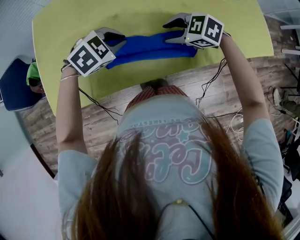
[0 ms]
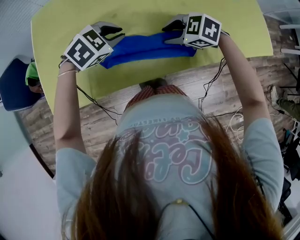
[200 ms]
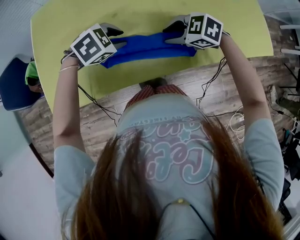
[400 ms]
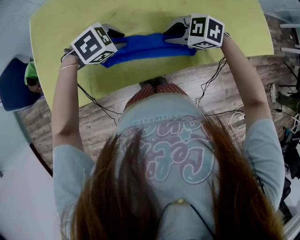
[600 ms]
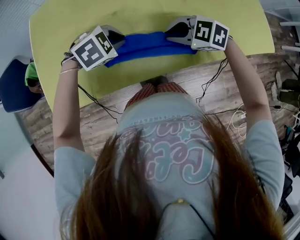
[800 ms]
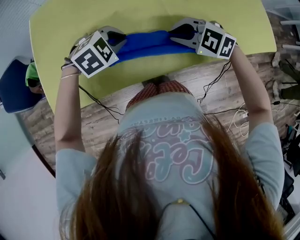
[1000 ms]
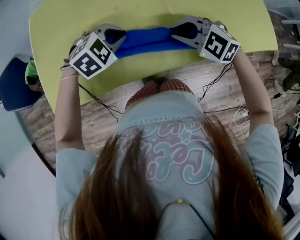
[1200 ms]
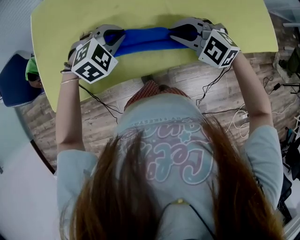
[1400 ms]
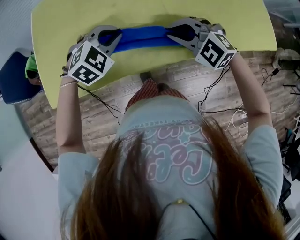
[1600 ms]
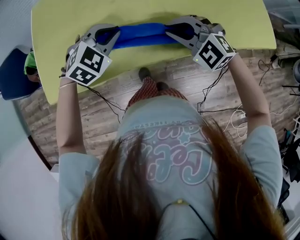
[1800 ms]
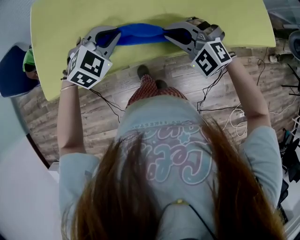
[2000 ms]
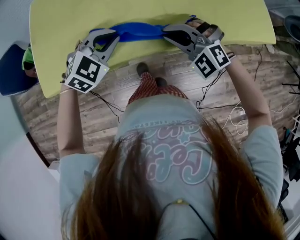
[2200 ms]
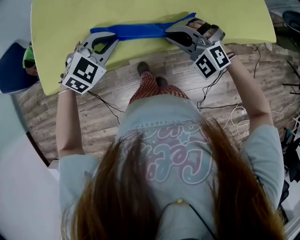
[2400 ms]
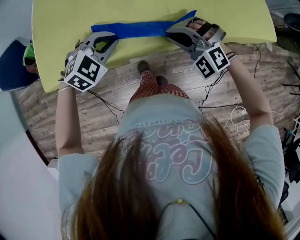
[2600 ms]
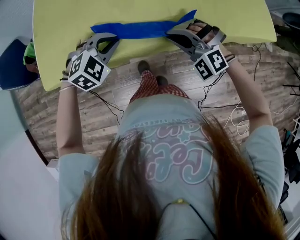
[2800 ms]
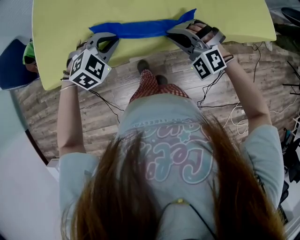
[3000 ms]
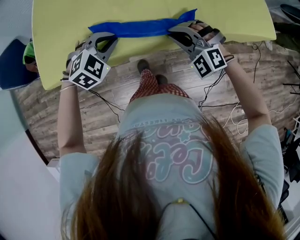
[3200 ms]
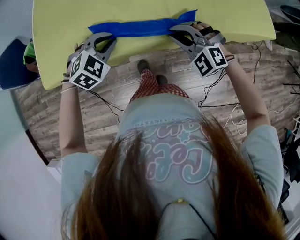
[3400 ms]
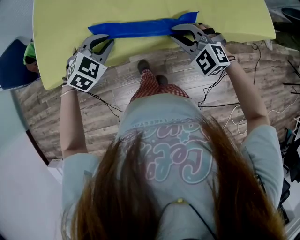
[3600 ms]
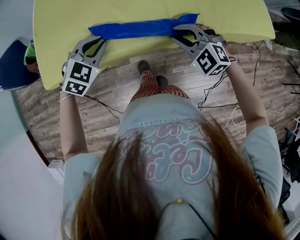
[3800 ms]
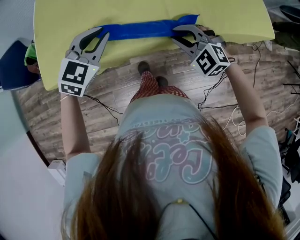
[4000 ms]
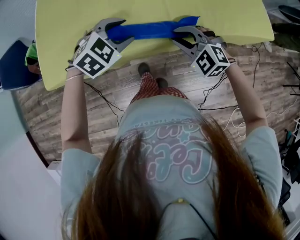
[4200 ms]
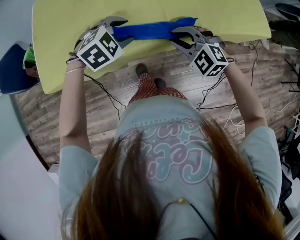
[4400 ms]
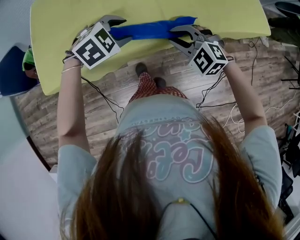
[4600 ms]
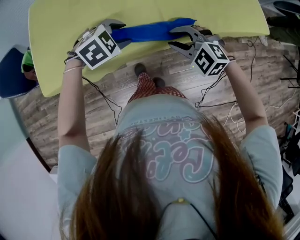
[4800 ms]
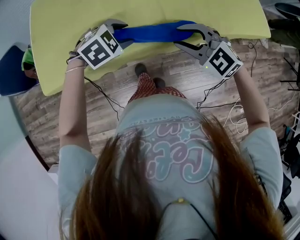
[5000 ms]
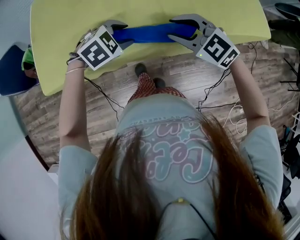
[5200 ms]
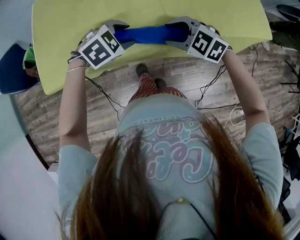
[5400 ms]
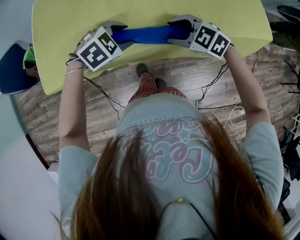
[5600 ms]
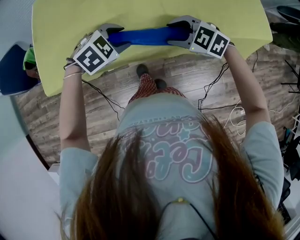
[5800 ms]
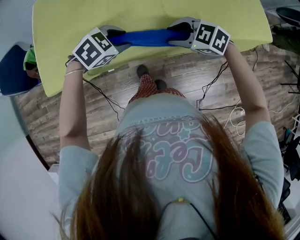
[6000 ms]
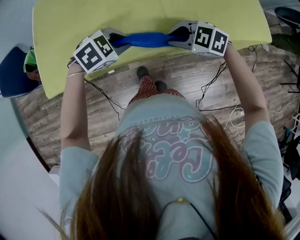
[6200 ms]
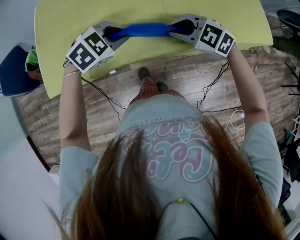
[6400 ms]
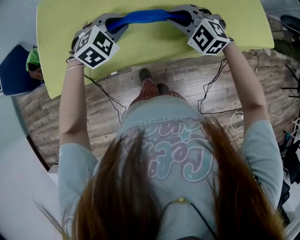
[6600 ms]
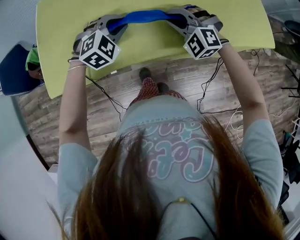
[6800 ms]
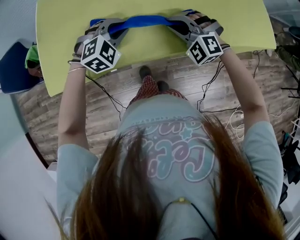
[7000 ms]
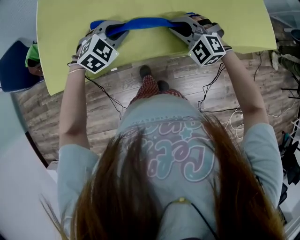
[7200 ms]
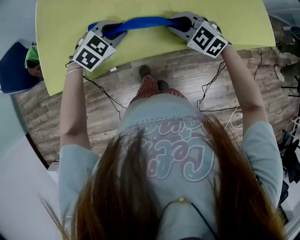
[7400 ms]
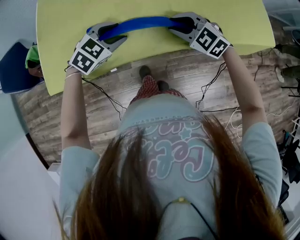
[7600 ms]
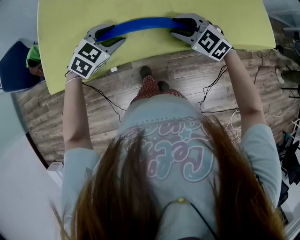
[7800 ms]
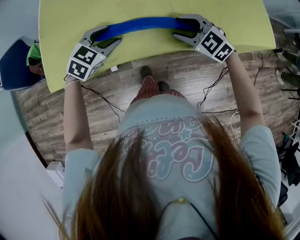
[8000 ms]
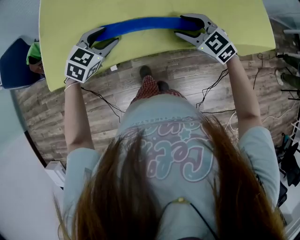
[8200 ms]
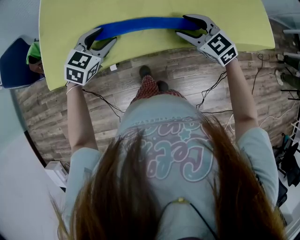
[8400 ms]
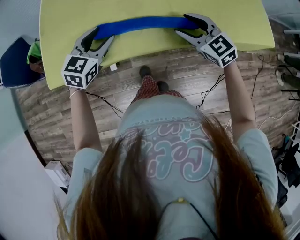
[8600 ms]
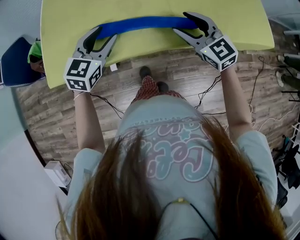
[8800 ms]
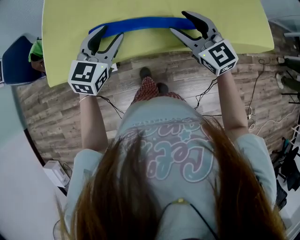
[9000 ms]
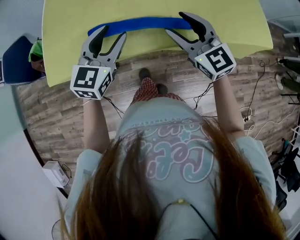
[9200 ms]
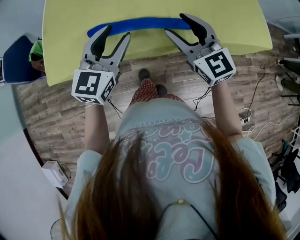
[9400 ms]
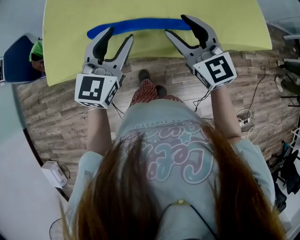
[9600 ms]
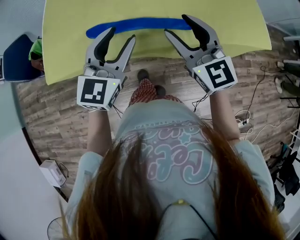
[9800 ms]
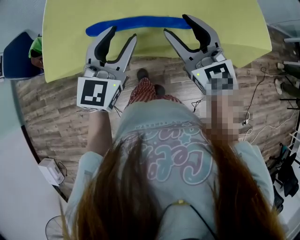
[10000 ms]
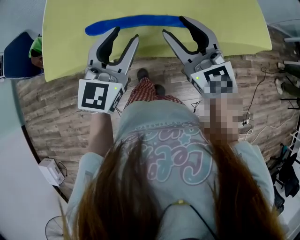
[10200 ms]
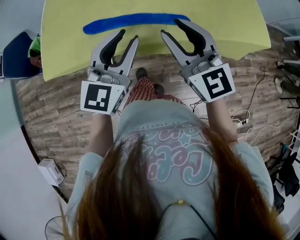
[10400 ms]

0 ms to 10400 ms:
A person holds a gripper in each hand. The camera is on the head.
0 ms to 1400 ms: The right gripper changes place by approximately 5 cm, changes its angle by about 30 degrees, and closes up.
1400 ms to 3000 ms: The grippers both shift backward by roughly 10 cm. The right gripper changes its angle by approximately 30 degrees.
3000 ms to 4400 ms: The left gripper is displaced to the right by about 5 cm, and opens, while the right gripper swivels some 30 degrees.
4400 ms to 6000 ms: The right gripper turns by some 30 degrees.
6000 ms to 7400 ms: The right gripper changes its angle by approximately 20 degrees, while the left gripper changes place by about 5 cm, and closes its fingers.
7400 ms to 9000 ms: The grippers both shift upward by about 10 cm. The right gripper changes its angle by some 40 degrees, and opens up; the left gripper rotates some 40 degrees, and opens up.
9000 ms to 10400 ms: The left gripper heads backward, to the right and upward, covering some 15 cm. Meanwhile the right gripper shifts approximately 10 cm upward and backward.

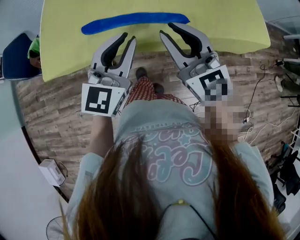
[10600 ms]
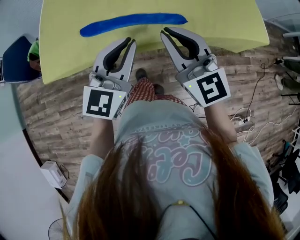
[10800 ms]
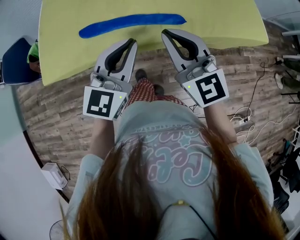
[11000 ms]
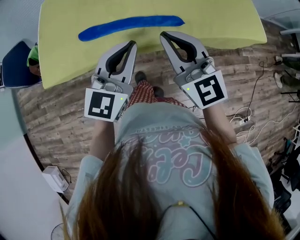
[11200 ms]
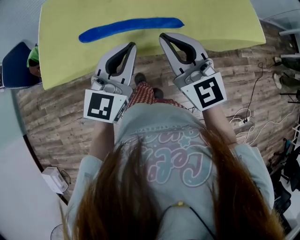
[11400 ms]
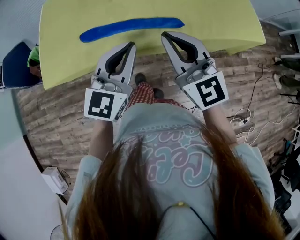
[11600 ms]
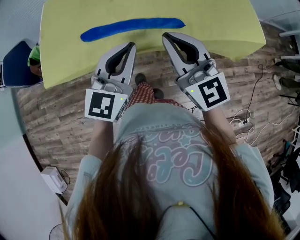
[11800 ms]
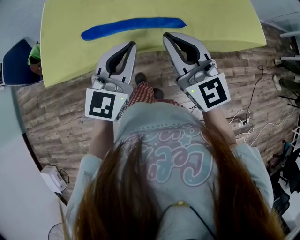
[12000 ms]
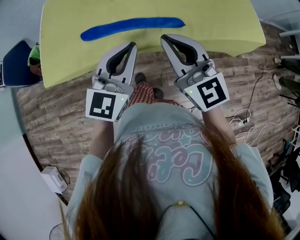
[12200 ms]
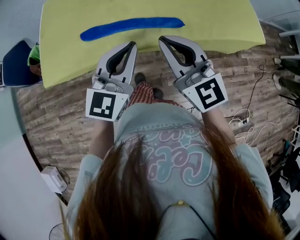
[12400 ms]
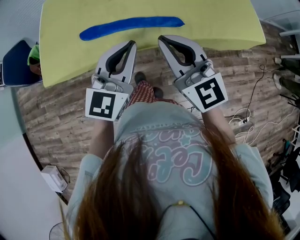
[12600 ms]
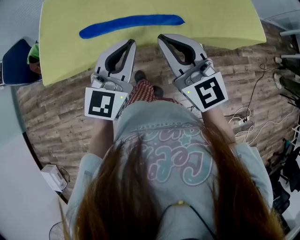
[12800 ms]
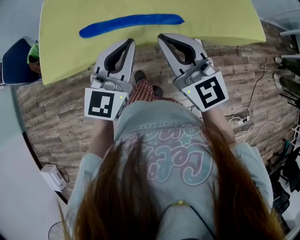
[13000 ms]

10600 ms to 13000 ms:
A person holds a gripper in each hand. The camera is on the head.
10600 ms to 13000 ms: The grippers move only a little.

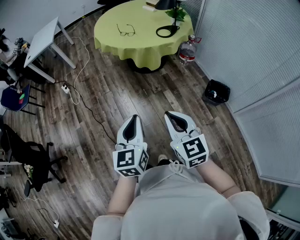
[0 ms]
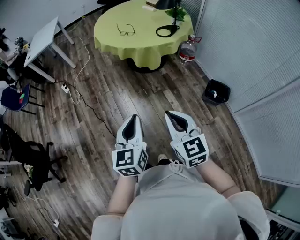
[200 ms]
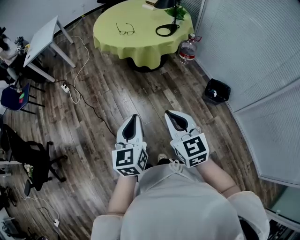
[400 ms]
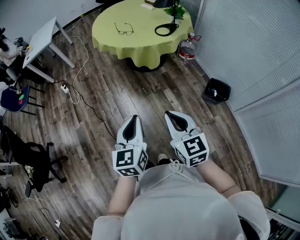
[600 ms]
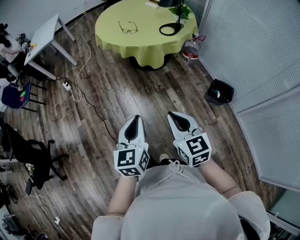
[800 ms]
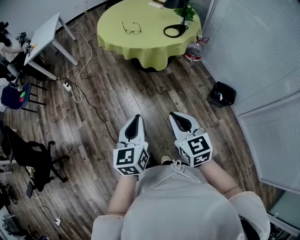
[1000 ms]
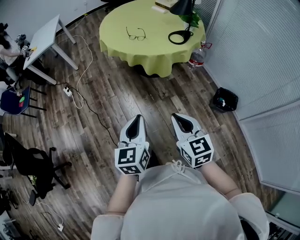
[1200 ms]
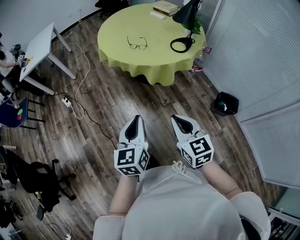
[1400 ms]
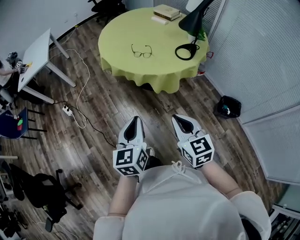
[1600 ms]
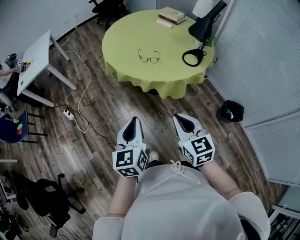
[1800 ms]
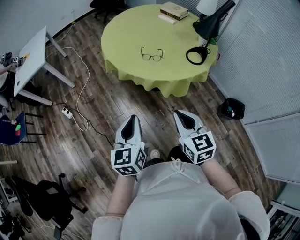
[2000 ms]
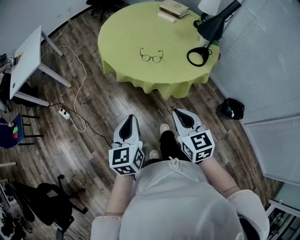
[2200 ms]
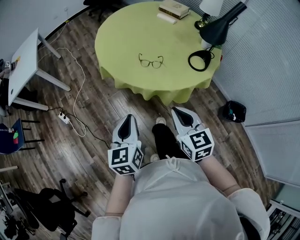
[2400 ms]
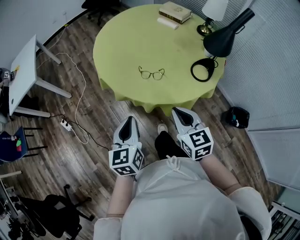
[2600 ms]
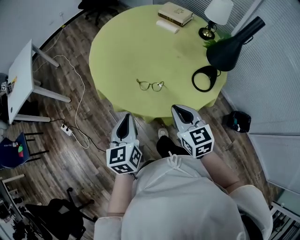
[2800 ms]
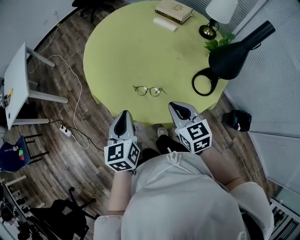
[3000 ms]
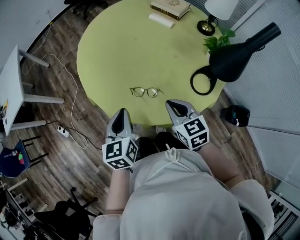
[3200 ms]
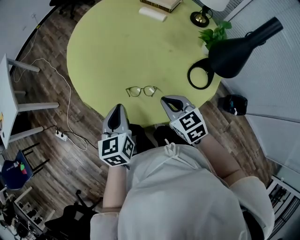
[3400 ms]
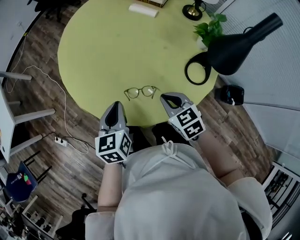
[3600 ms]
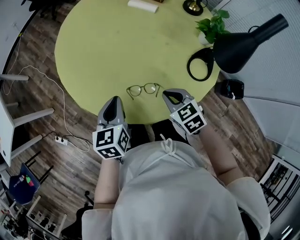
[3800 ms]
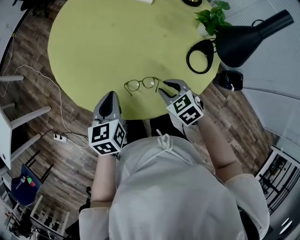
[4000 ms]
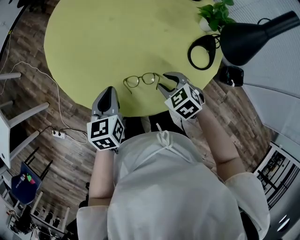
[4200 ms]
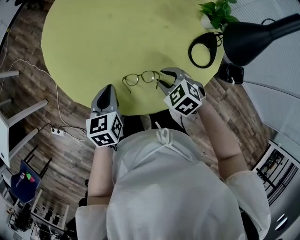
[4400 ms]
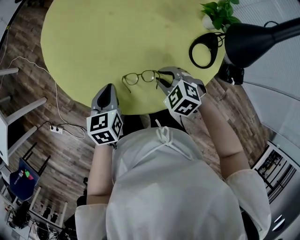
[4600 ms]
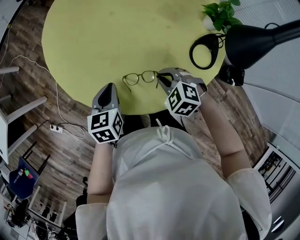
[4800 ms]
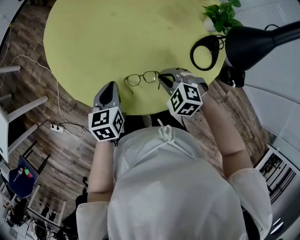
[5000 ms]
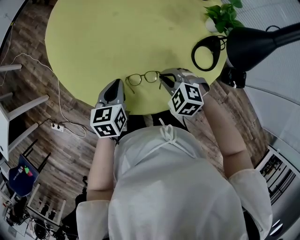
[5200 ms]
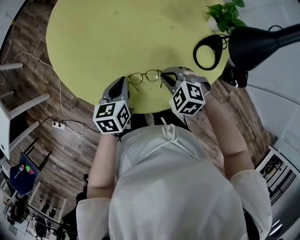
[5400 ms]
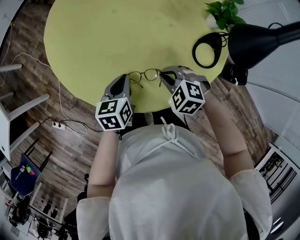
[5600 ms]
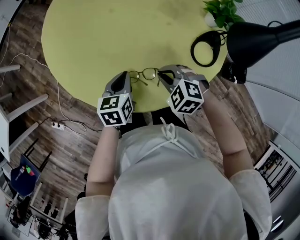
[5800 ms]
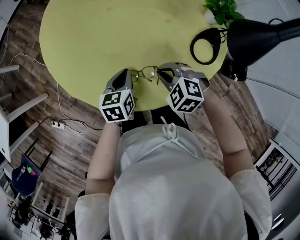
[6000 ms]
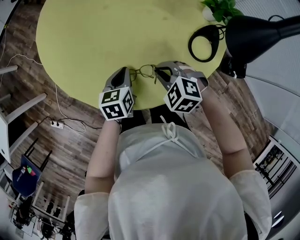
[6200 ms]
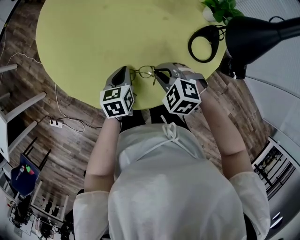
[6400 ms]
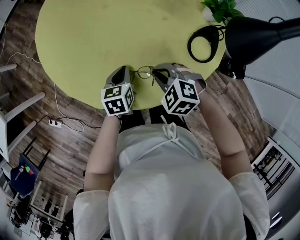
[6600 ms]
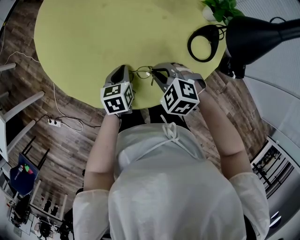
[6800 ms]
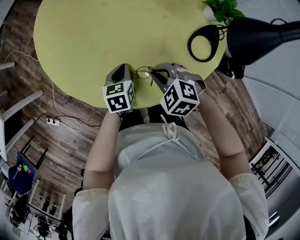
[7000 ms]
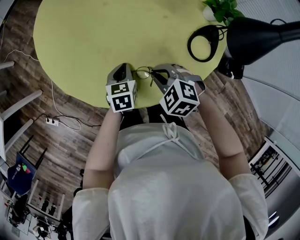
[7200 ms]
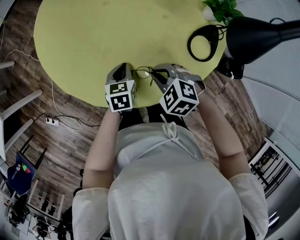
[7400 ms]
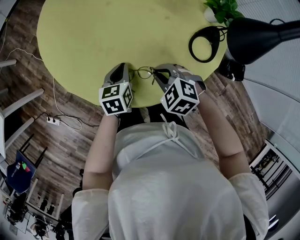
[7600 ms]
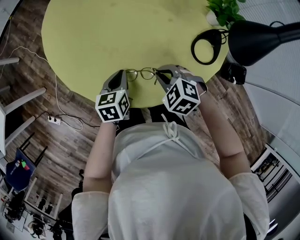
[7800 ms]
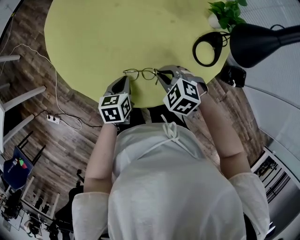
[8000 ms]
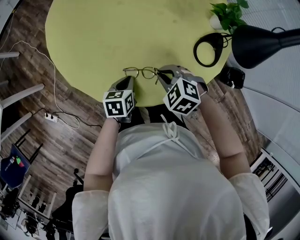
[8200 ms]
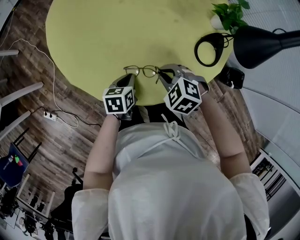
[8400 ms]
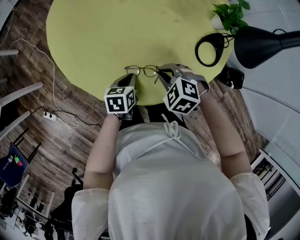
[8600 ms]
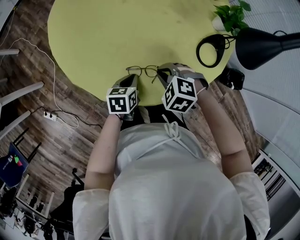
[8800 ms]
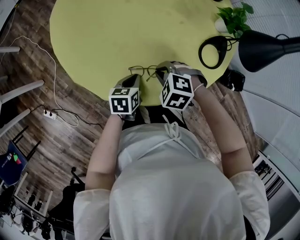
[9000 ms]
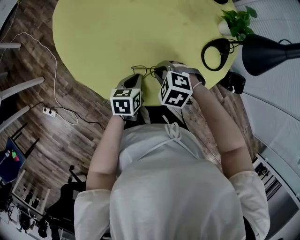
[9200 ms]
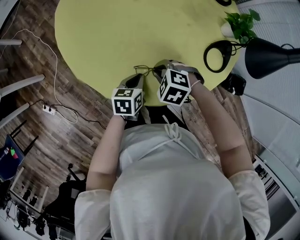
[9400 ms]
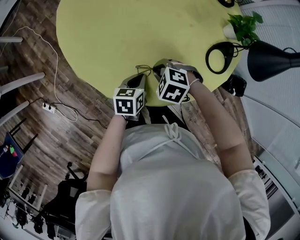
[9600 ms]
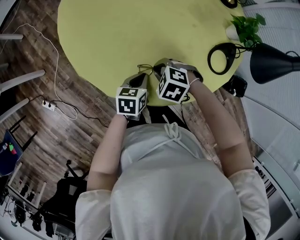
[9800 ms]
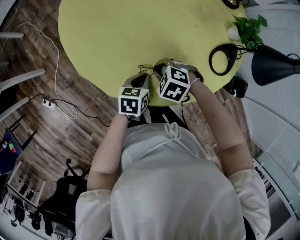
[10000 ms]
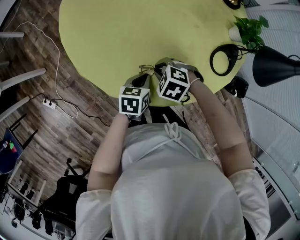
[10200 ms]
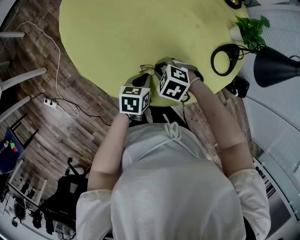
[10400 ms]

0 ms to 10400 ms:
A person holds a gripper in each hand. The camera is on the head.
0 ms to 1400 ms: The left gripper heads forward and to the left, covering roughly 25 cm; the right gripper travels forward by some 20 cm.
1400 ms to 3000 ms: The pair of grippers is taken forward, approximately 60 cm.
3000 ms to 4400 ms: The right gripper heads downward and forward, covering approximately 20 cm, tilts its fingers approximately 30 degrees downward, and opens. The left gripper is displaced forward and downward by approximately 20 cm, and swivels roughly 30 degrees.
4400 ms to 6000 ms: The left gripper shifts some 10 cm to the right and downward, while the right gripper closes up.
6000 ms to 7400 ms: The left gripper moves some 5 cm.
7400 ms to 9000 ms: The left gripper is displaced backward by about 5 cm.
9000 ms to 10400 ms: The right gripper ends up roughly 5 cm from where it was.
